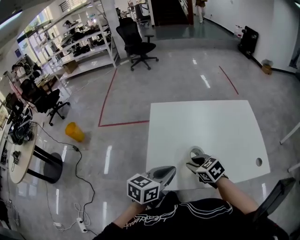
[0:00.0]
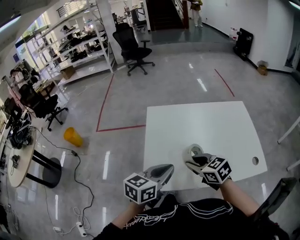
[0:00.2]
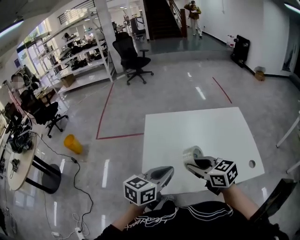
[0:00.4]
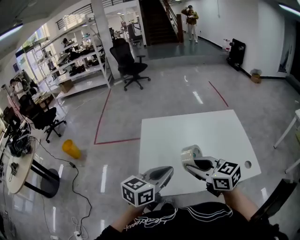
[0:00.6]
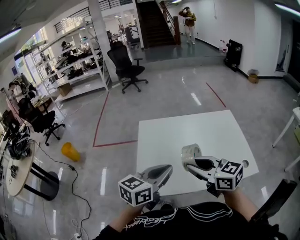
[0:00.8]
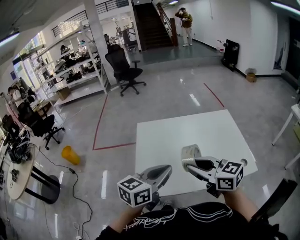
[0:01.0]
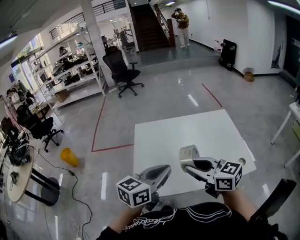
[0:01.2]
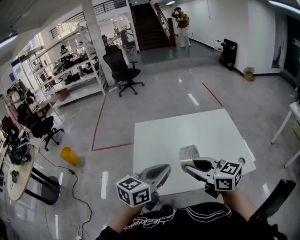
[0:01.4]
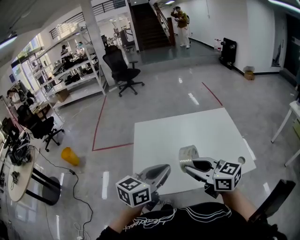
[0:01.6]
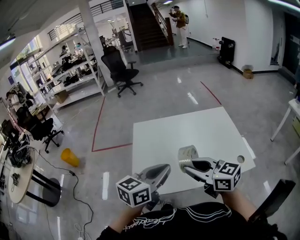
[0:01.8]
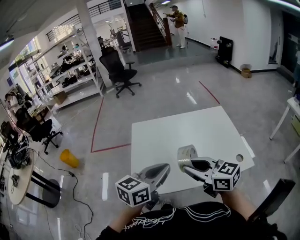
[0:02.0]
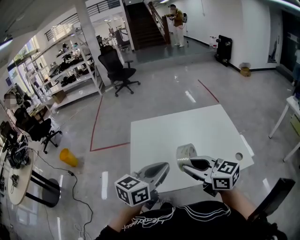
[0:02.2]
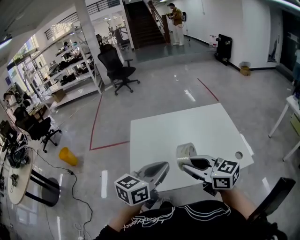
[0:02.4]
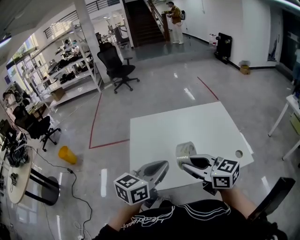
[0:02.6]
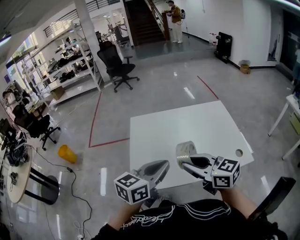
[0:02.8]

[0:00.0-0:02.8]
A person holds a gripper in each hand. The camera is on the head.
0:00.0 to 0:01.4: The left gripper heads upward and to the right, covering some 15 cm. Meanwhile the right gripper heads upward and backward, covering roughly 25 cm, and points its fingers about 40 degrees further upward.
0:01.4 to 0:02.8: The grippers make only small movements.

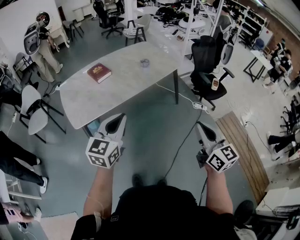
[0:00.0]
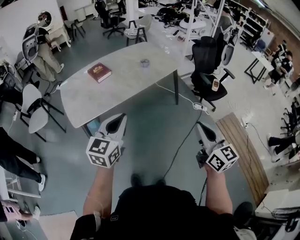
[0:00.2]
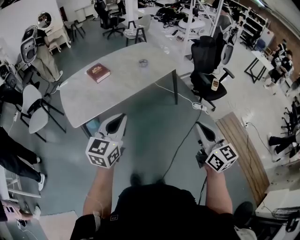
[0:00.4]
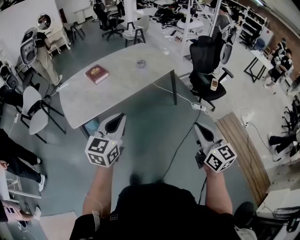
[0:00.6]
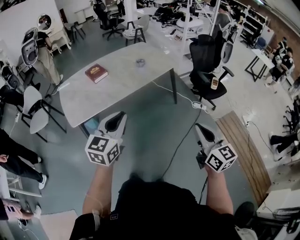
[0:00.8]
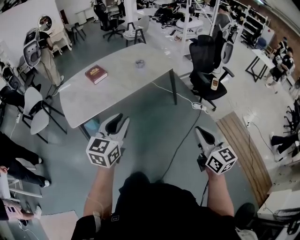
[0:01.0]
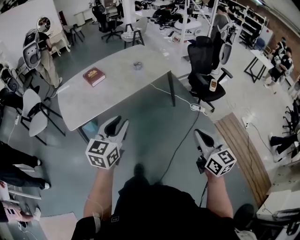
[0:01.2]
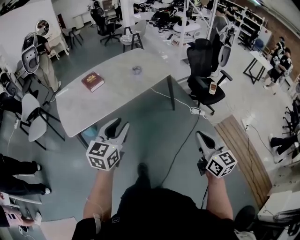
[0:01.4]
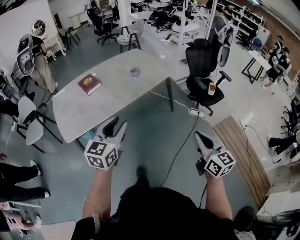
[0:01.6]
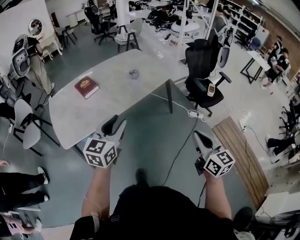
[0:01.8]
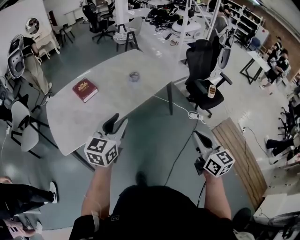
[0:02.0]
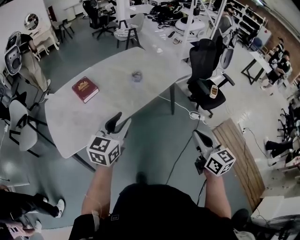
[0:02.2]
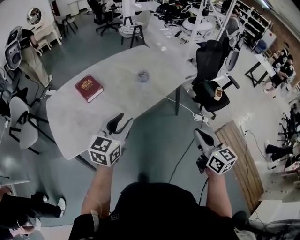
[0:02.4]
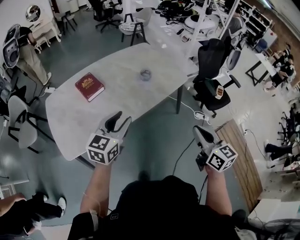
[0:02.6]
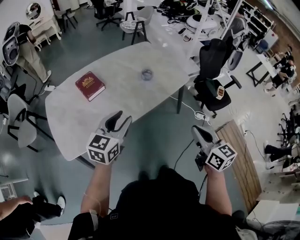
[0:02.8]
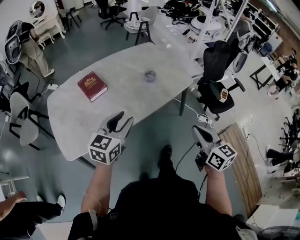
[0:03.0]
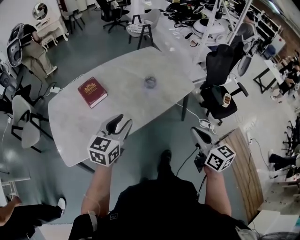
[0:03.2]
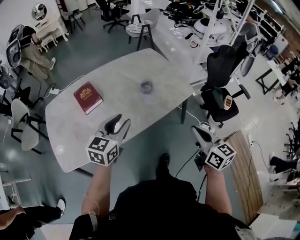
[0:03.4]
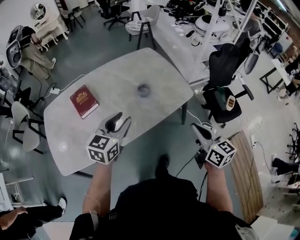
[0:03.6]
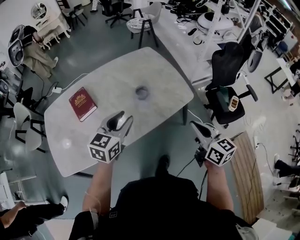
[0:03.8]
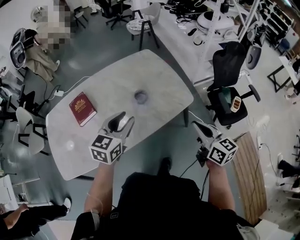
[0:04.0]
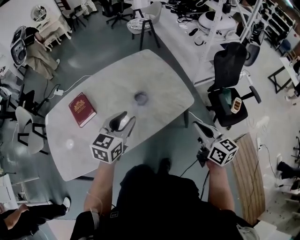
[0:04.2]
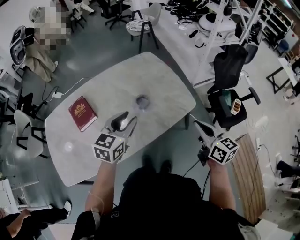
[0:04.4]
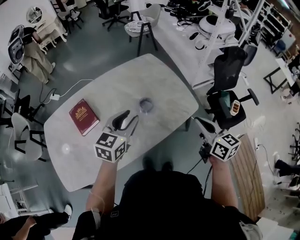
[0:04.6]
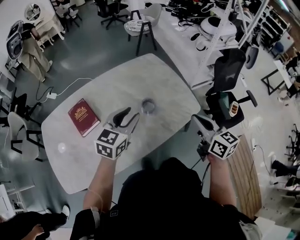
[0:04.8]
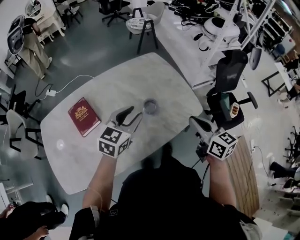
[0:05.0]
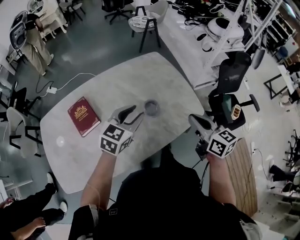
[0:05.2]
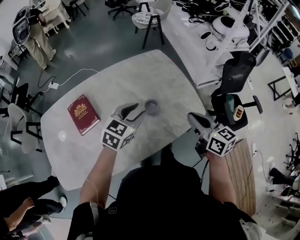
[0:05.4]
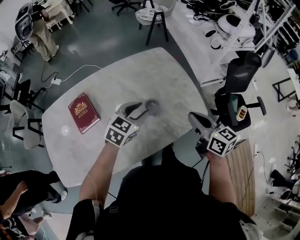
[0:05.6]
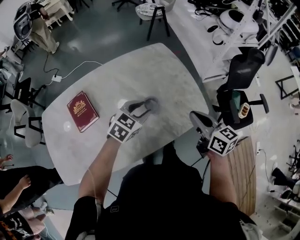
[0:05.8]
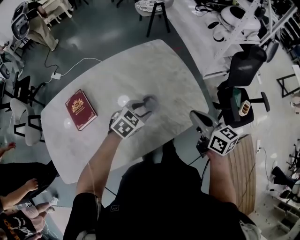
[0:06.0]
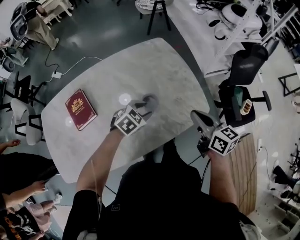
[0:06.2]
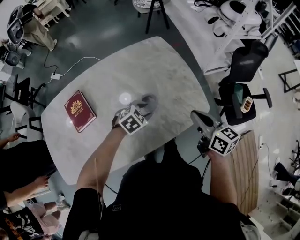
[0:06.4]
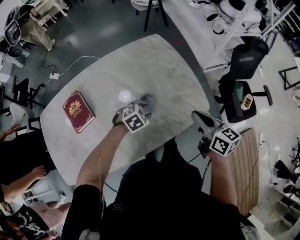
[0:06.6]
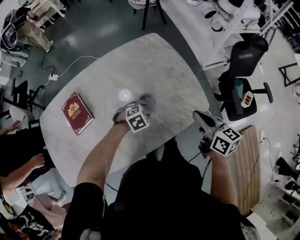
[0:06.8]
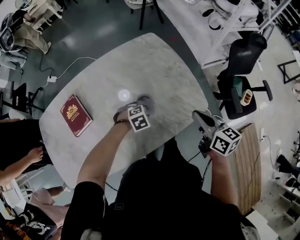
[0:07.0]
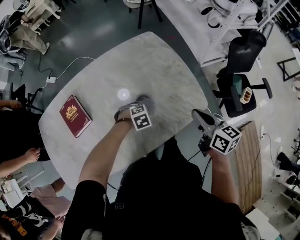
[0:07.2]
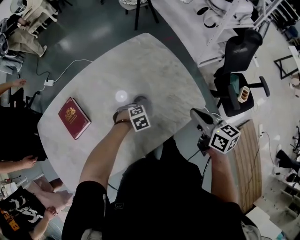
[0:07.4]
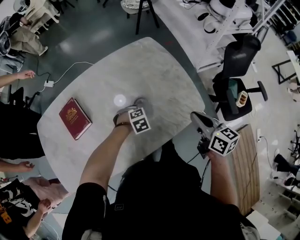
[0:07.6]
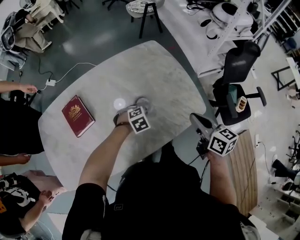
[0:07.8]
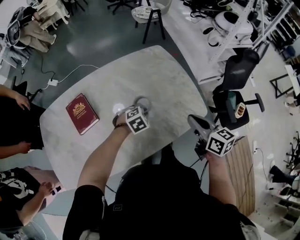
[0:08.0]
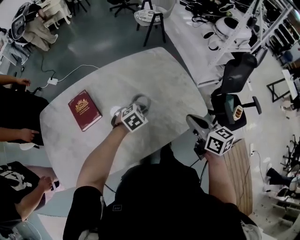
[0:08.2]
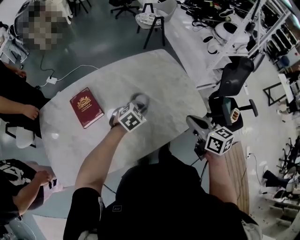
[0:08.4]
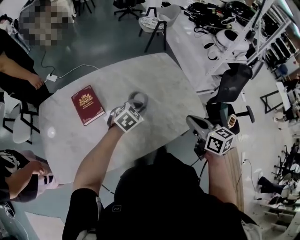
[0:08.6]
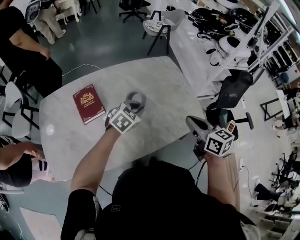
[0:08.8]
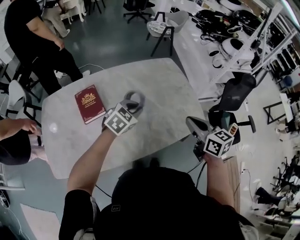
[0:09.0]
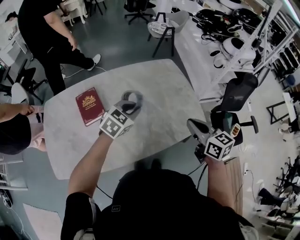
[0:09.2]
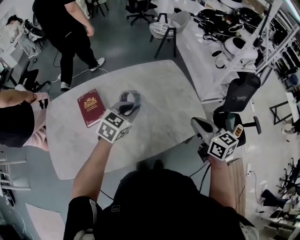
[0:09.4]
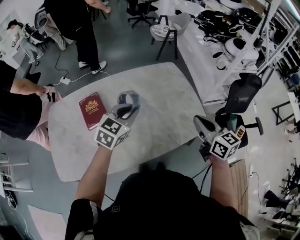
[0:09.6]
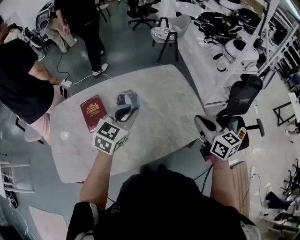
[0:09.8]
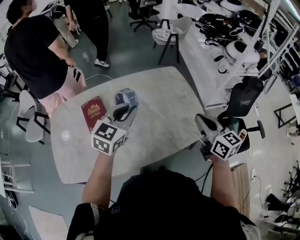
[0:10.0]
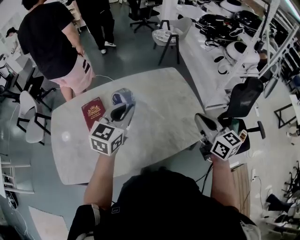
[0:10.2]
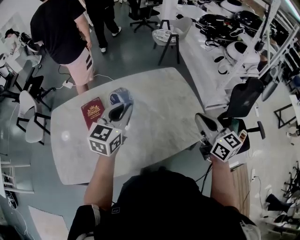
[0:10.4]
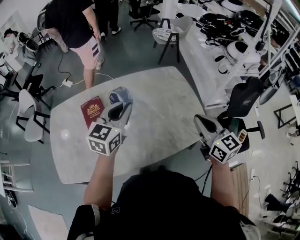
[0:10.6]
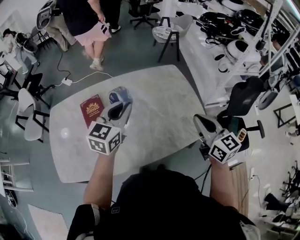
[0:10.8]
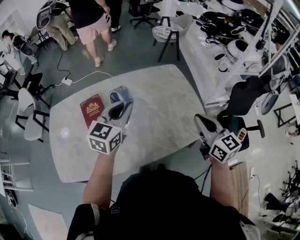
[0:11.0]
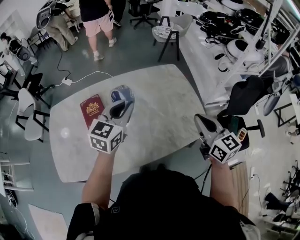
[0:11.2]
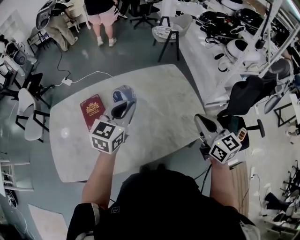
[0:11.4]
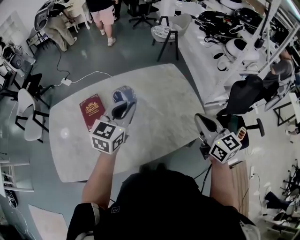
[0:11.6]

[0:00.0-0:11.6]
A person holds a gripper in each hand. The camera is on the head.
0:00.0 to 0:01.4: The grippers both shift to the right by some 10 cm. The left gripper opens up.
0:01.4 to 0:02.8: Both grippers travel together forward and to the left, about 35 cm.
0:02.8 to 0:04.4: Both grippers move forward and to the right, some 35 cm.
0:04.4 to 0:05.8: The left gripper moves forward and downward, about 20 cm, and swivels some 20 degrees. Meanwhile the right gripper moves forward and to the left, about 20 cm.
0:05.8 to 0:07.2: The right gripper goes some 5 cm downward. Meanwhile the left gripper heads downward, covering approximately 20 cm, and angles its fingers downward, by roughly 40 degrees.
0:07.2 to 0:08.8: The left gripper is displaced upward by some 20 cm, and tips its fingers upward by approximately 40 degrees, while the right gripper shifts by about 20 cm.
0:08.8 to 0:10.2: The right gripper is displaced upward, to the right and forward by approximately 10 cm. Meanwhile the left gripper moves upward, roughly 20 cm, and changes its angle by about 30 degrees.
0:10.2 to 0:11.6: There are only small adjustments of the grippers.

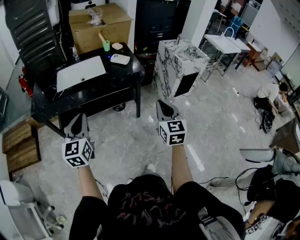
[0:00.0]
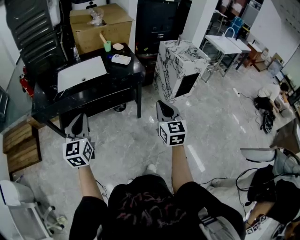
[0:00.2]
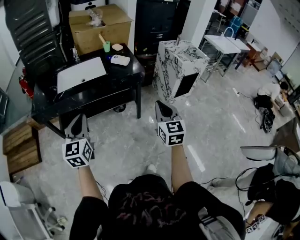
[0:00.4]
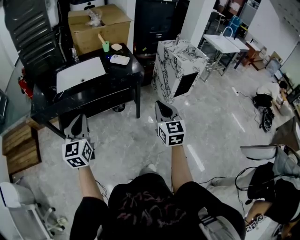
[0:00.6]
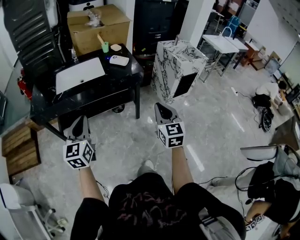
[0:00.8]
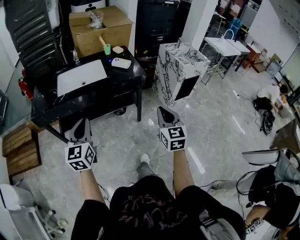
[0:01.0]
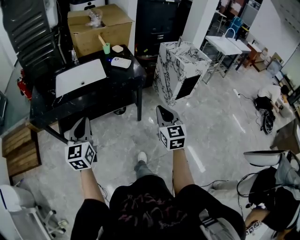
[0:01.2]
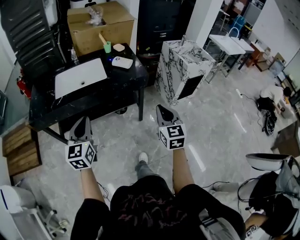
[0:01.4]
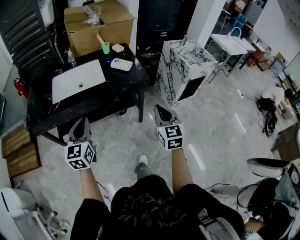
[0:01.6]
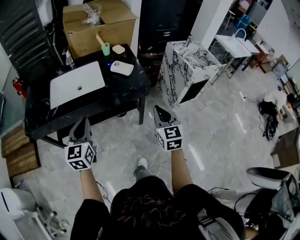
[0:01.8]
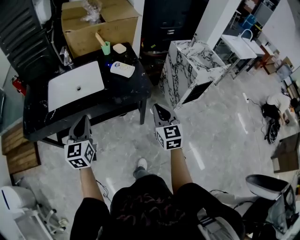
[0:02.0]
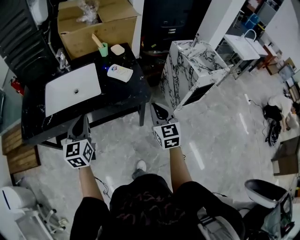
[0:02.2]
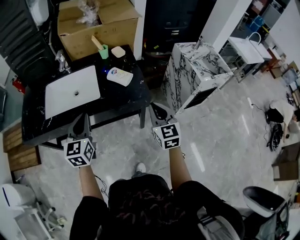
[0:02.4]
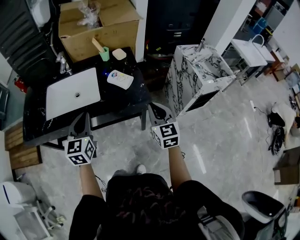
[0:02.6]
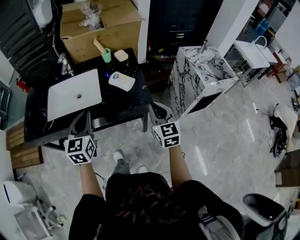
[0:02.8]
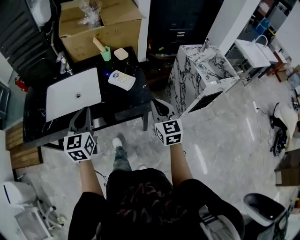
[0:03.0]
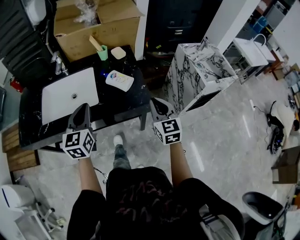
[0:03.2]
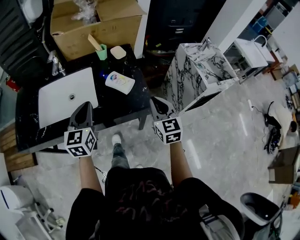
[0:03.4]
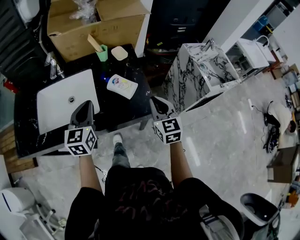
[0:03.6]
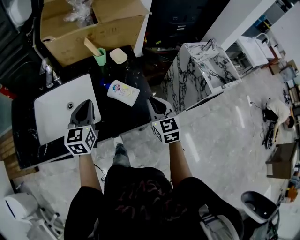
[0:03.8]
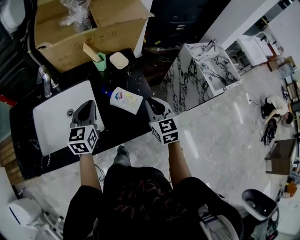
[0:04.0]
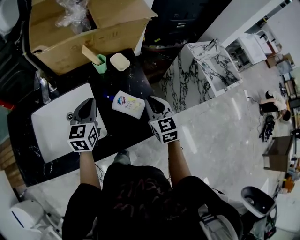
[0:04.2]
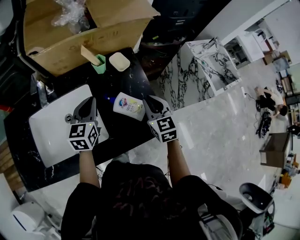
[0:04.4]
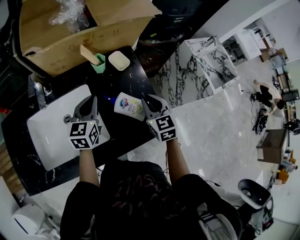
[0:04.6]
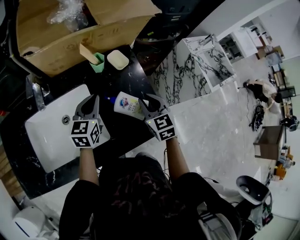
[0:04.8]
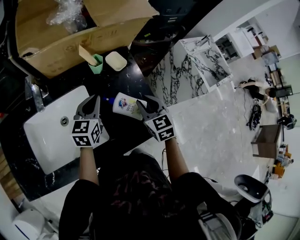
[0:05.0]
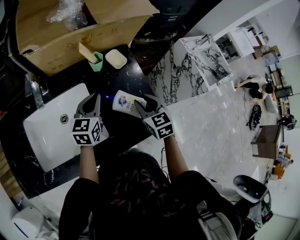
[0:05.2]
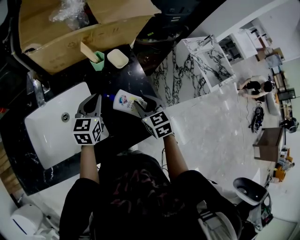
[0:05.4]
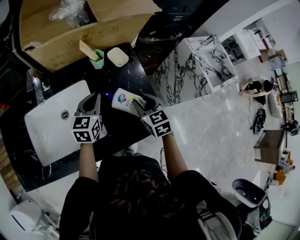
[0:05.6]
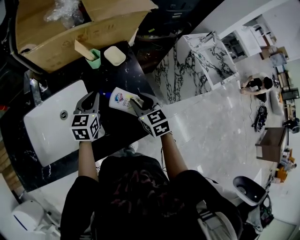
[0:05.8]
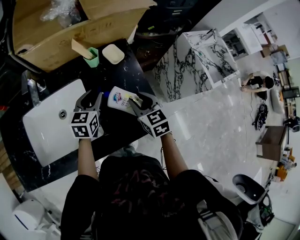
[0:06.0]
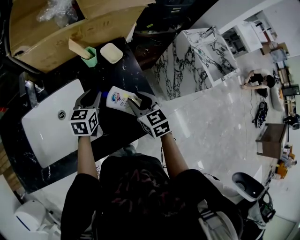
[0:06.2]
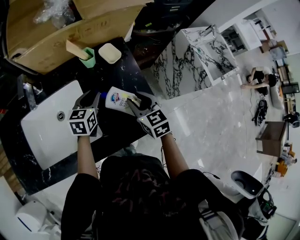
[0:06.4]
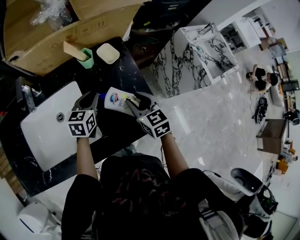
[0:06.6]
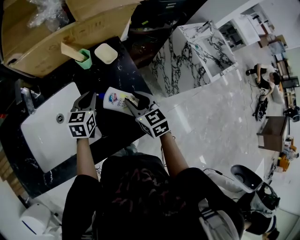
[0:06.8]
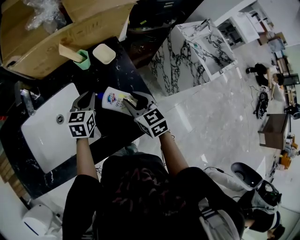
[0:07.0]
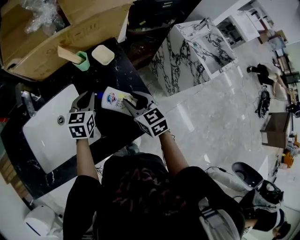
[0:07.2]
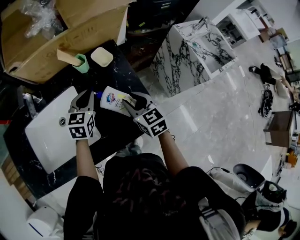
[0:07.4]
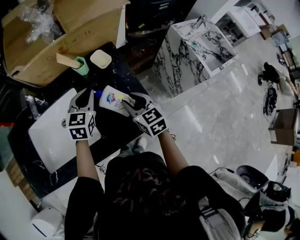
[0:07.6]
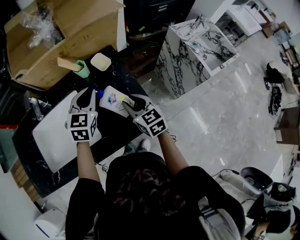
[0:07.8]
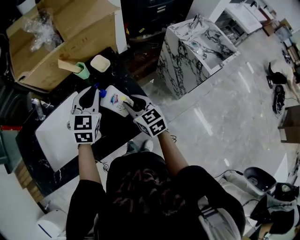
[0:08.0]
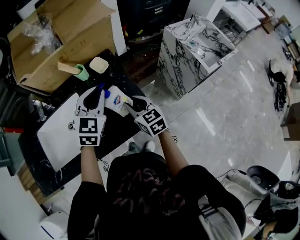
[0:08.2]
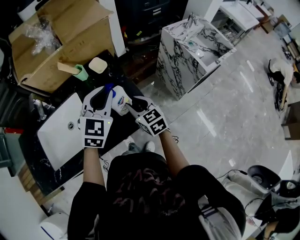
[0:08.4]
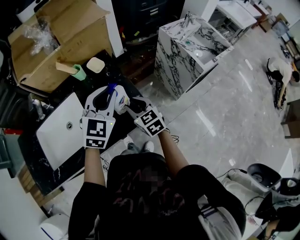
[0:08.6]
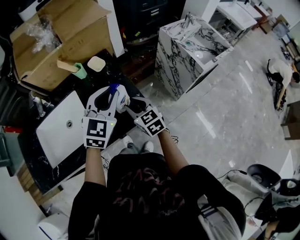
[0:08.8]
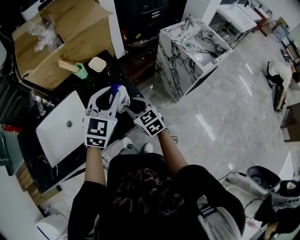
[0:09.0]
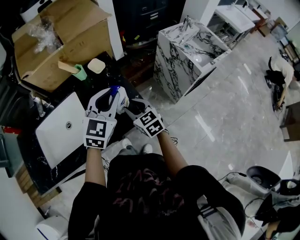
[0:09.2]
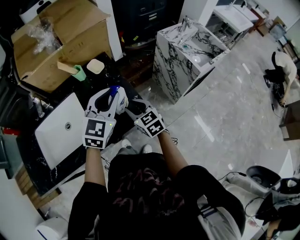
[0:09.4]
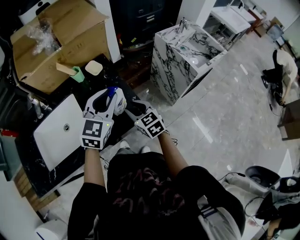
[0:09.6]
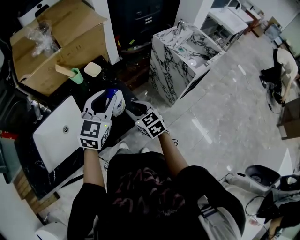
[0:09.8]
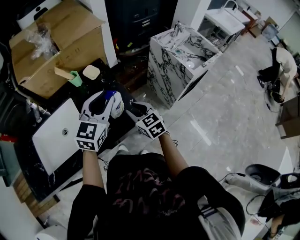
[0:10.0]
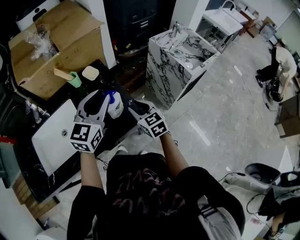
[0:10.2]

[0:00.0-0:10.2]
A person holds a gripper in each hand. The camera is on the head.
0:00.0 to 0:01.4: The two grippers go roughly 10 cm forward.
0:01.4 to 0:03.0: The two grippers go some 30 cm forward.
0:03.0 to 0:04.4: The two grippers go some 30 cm forward.
0:04.4 to 0:05.8: The right gripper opens; the left gripper changes place by approximately 5 cm.
0:05.8 to 0:07.2: The grippers move only a little.
0:07.2 to 0:08.8: The left gripper shifts roughly 25 cm to the right, upward and backward, and rotates approximately 30 degrees. The right gripper heads backward and to the right, covering about 10 cm.
0:08.8 to 0:10.2: The right gripper travels to the right by some 5 cm.
